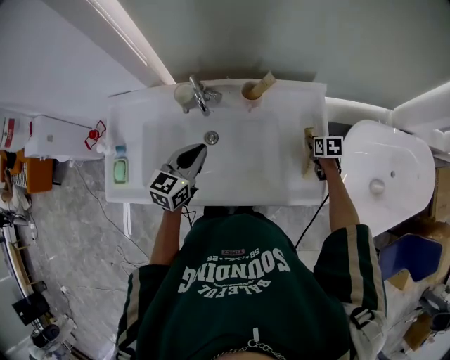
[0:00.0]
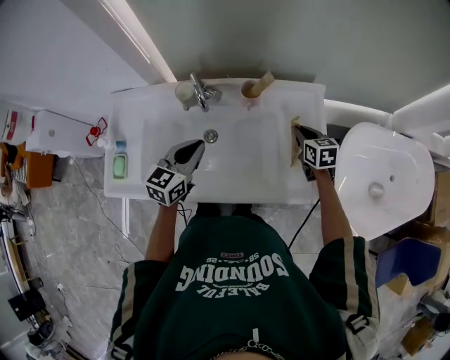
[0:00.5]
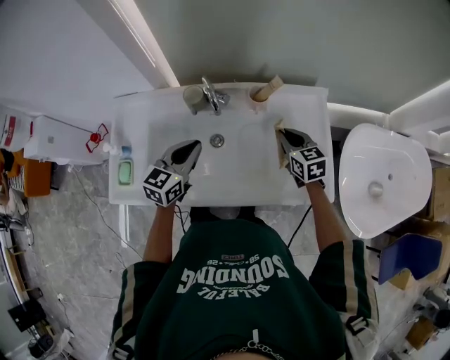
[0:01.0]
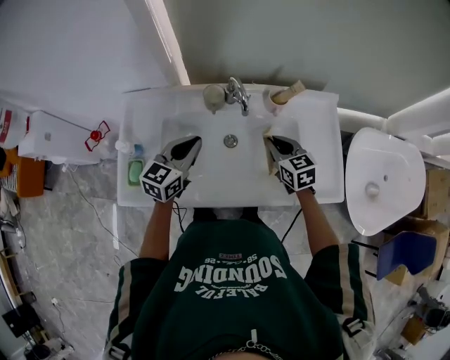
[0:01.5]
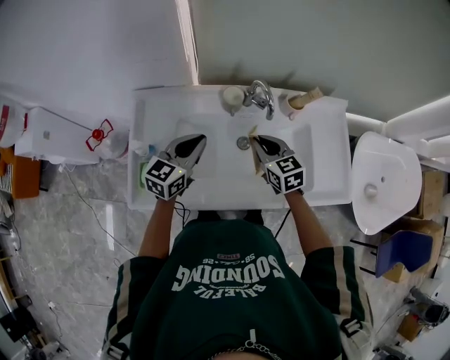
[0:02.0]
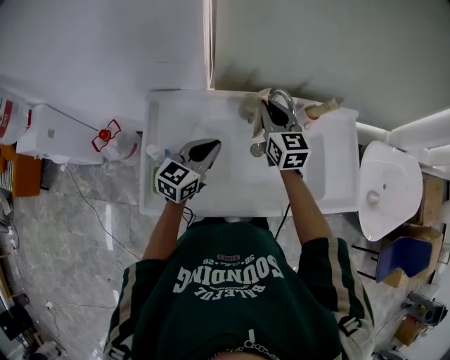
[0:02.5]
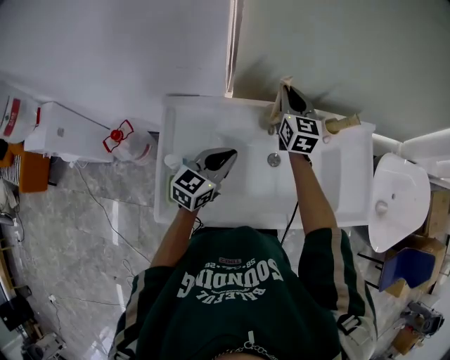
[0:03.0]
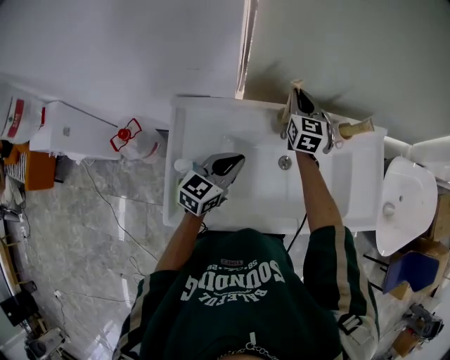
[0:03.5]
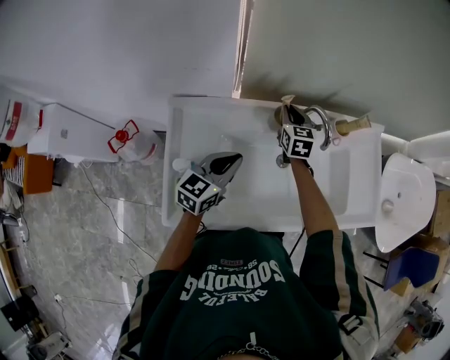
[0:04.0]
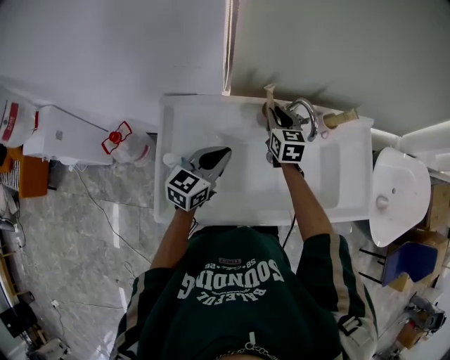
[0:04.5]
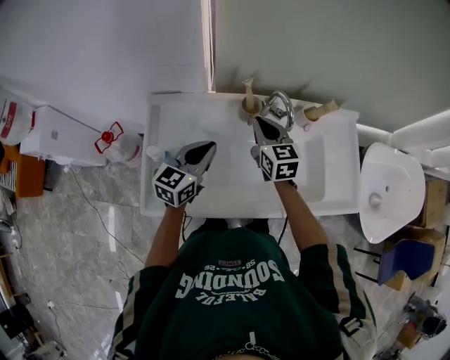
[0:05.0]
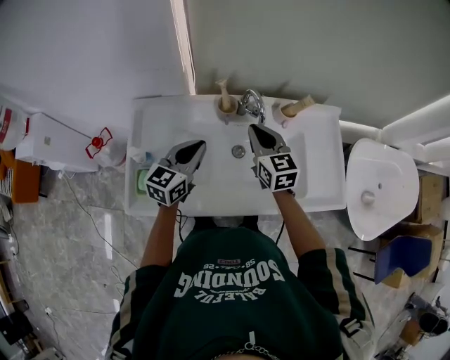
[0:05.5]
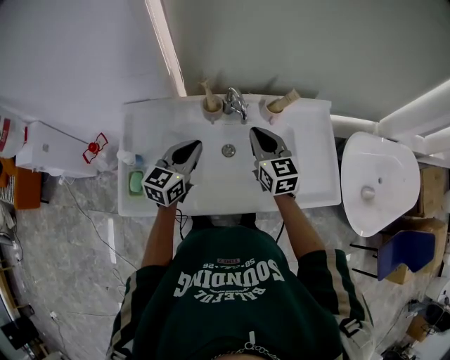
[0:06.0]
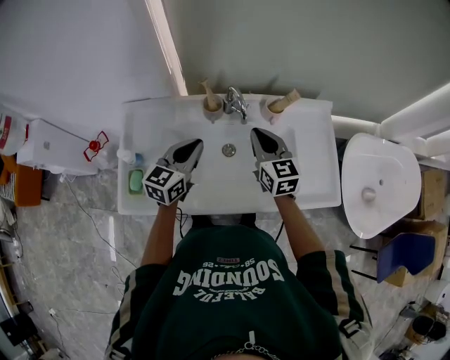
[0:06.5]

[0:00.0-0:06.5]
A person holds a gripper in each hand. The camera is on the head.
0:00.0 to 0:02.0: The right gripper shifts about 40 cm to the left, and tips its fingers upward by some 30 degrees. Meanwhile the left gripper travels to the left by about 20 cm.
0:02.0 to 0:04.5: The left gripper heads to the left, covering some 5 cm. The right gripper moves forward and to the left, some 20 cm.
0:04.5 to 0:06.5: The left gripper is displaced to the right by about 15 cm; the right gripper heads to the right, backward and upward, covering approximately 20 cm.

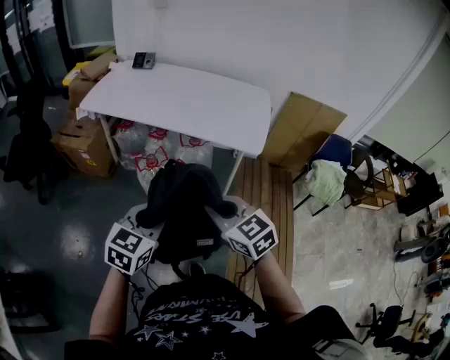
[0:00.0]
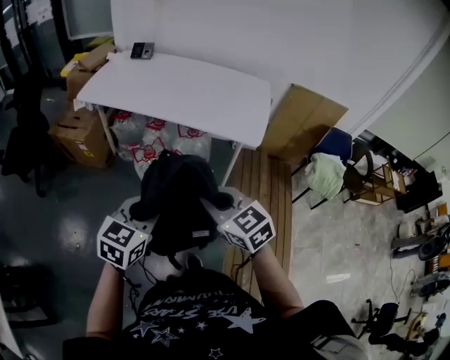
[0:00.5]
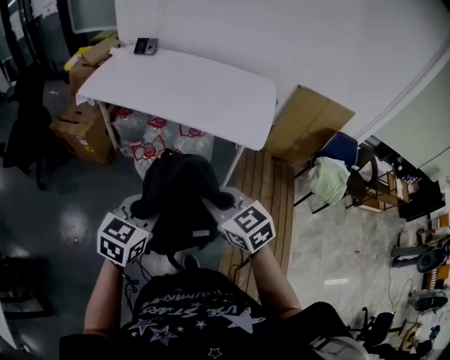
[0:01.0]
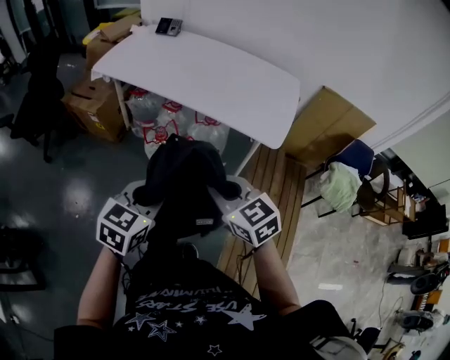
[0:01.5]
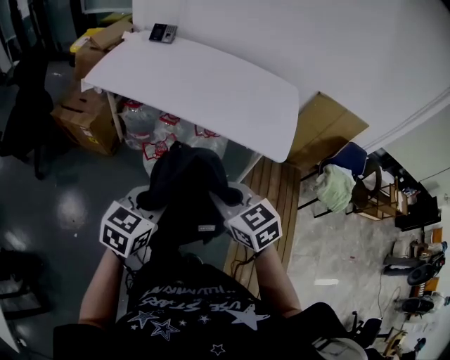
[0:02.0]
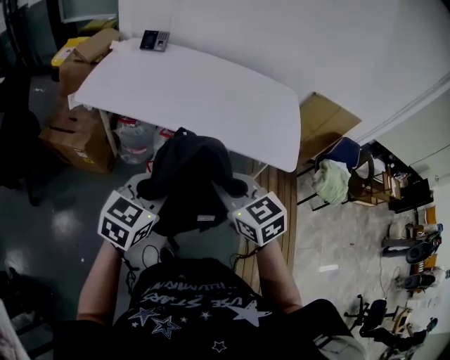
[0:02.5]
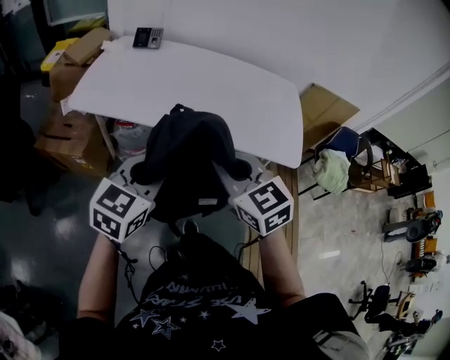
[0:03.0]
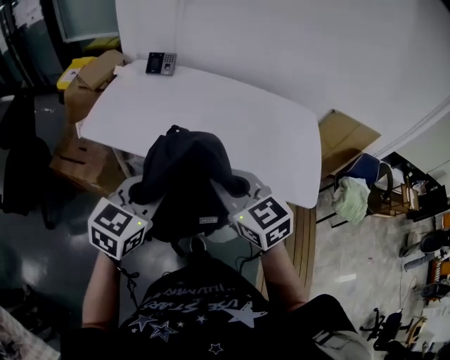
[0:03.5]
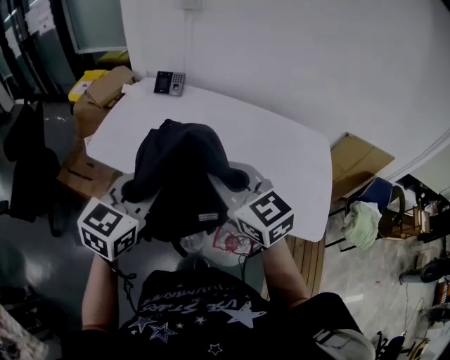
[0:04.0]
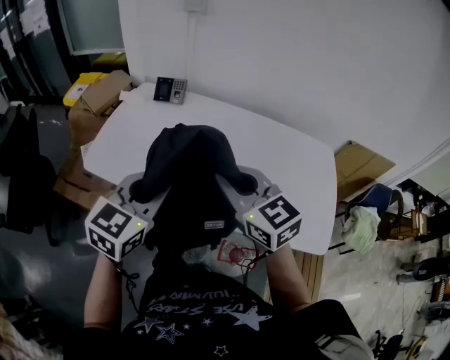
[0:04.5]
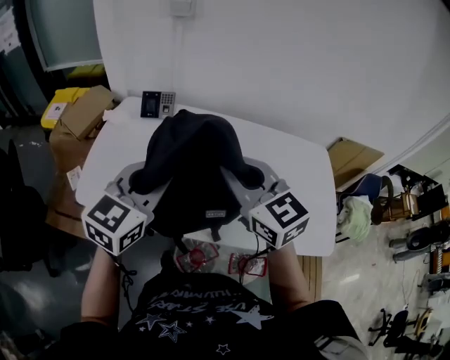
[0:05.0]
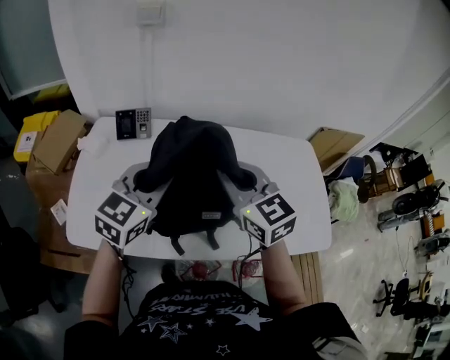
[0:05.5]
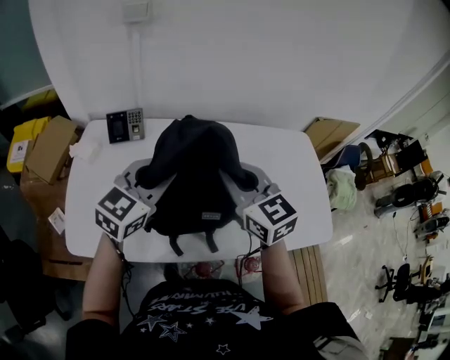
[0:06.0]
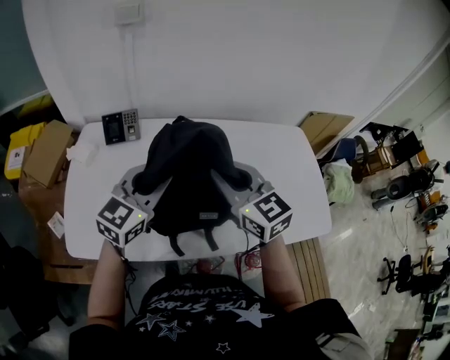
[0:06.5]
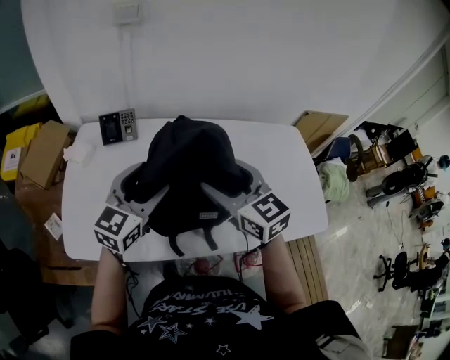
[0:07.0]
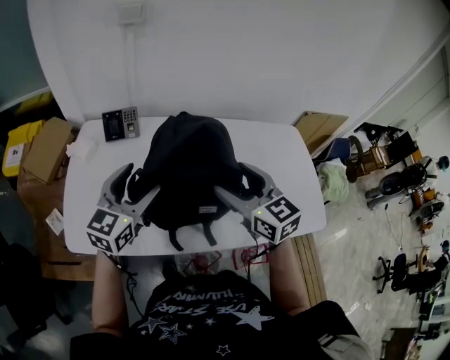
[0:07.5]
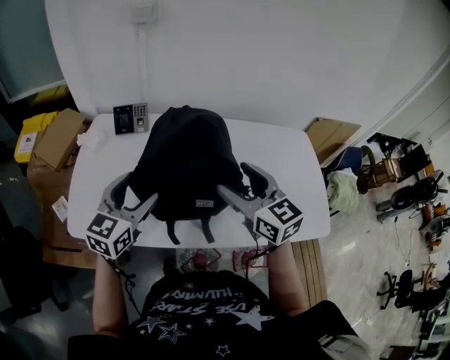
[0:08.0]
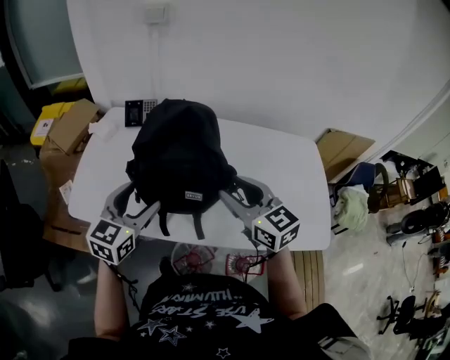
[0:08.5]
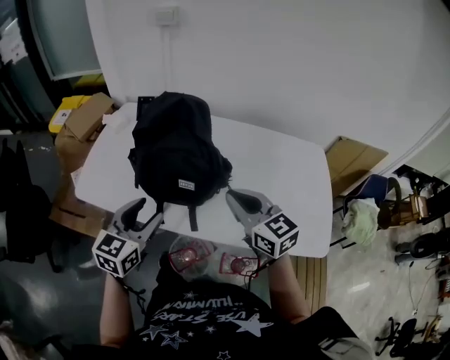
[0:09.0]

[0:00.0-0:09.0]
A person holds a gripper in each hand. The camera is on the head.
0:00.0 to 0:02.0: The grippers both shift forward by about 15 cm.
0:02.0 to 0:04.5: The pair of grippers is taken forward, approximately 50 cm.
0:04.5 to 0:07.0: The right gripper changes place by some 20 cm, rotates about 30 degrees, and opens up, while the left gripper moves about 25 cm, changes its angle by about 20 degrees, and opens up.
0:07.0 to 0:09.0: The right gripper goes some 15 cm backward and to the right, and closes its fingers. Meanwhile the left gripper shifts roughly 20 cm backward, and rotates about 30 degrees.

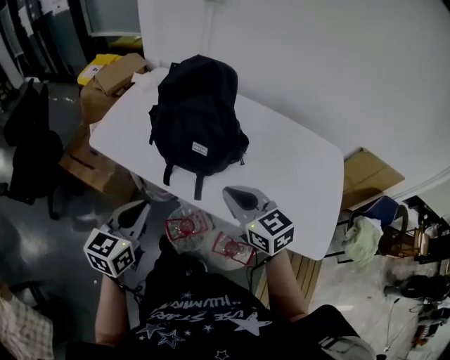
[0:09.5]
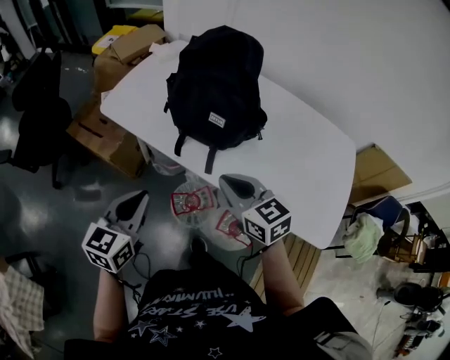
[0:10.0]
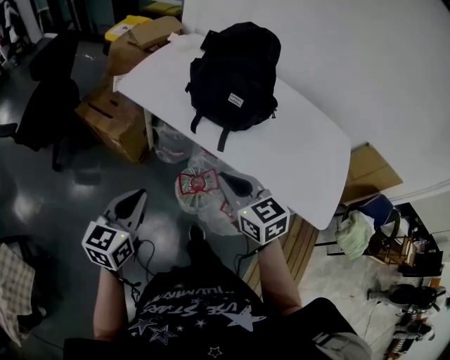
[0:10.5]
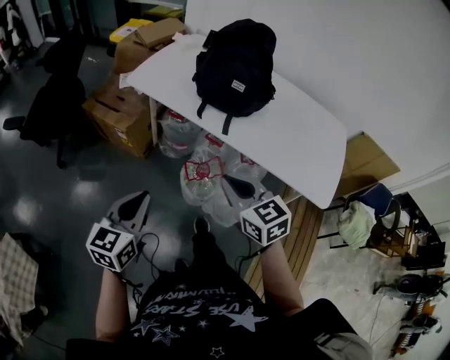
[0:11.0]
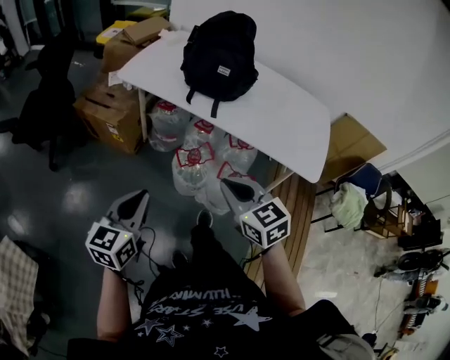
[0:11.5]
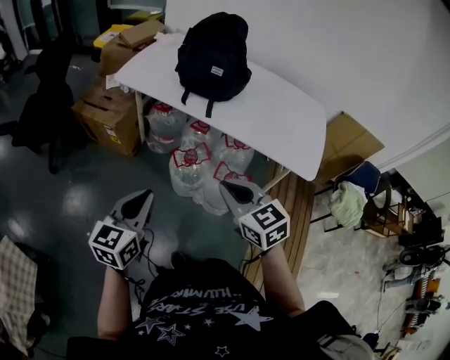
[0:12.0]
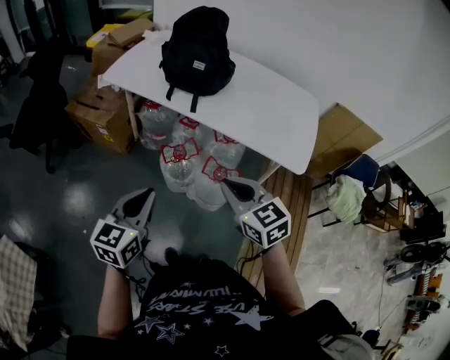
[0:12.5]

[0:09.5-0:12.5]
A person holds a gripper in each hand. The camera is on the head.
0:09.5 to 0:11.0: The grippers both shift backward and to the left by some 25 cm.
0:11.0 to 0:12.5: The left gripper goes about 15 cm to the right and backward. The right gripper moves backward and to the right, roughly 15 cm.

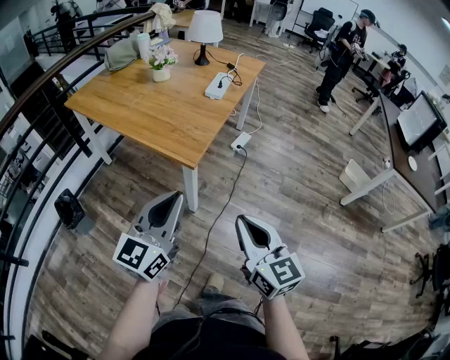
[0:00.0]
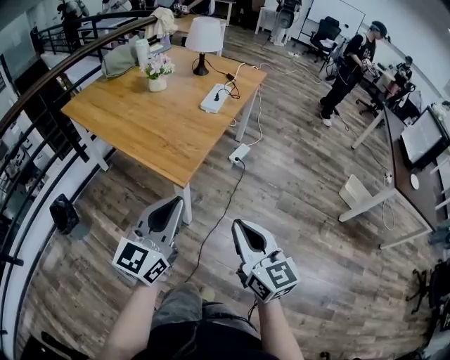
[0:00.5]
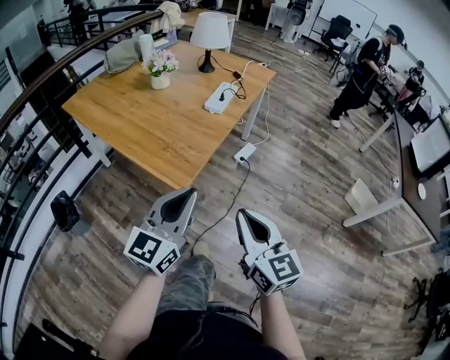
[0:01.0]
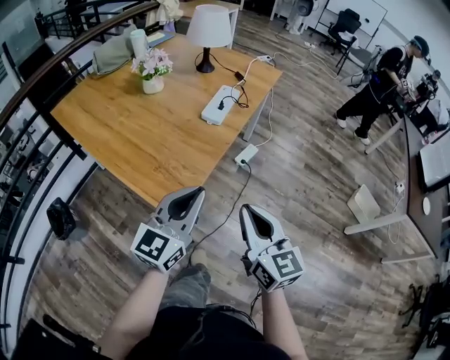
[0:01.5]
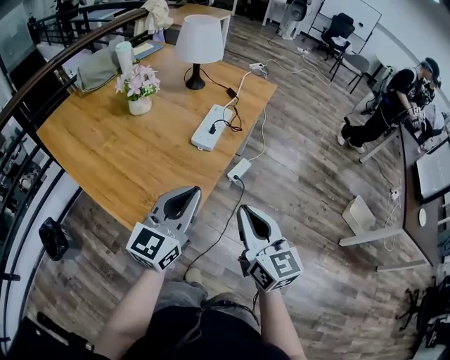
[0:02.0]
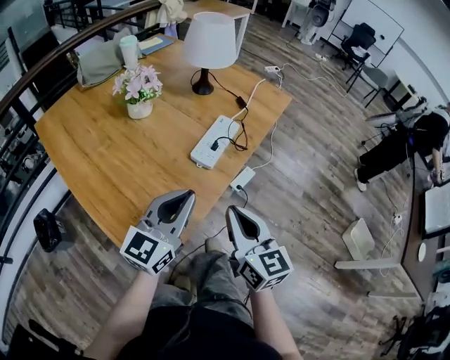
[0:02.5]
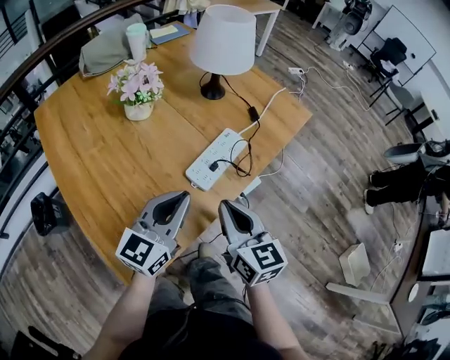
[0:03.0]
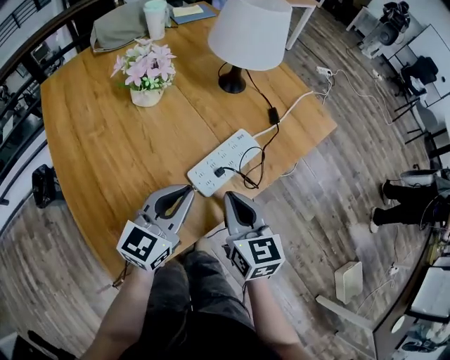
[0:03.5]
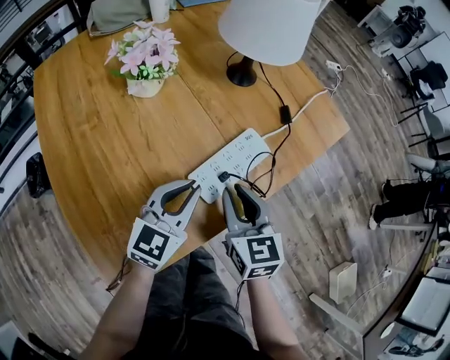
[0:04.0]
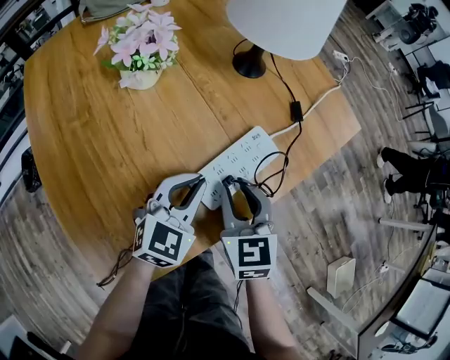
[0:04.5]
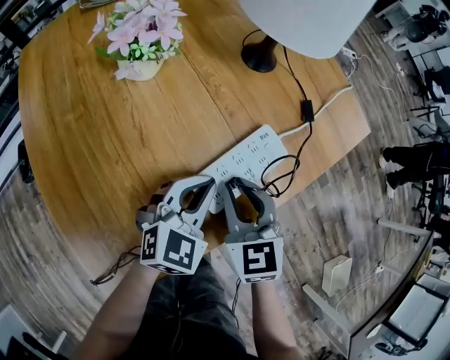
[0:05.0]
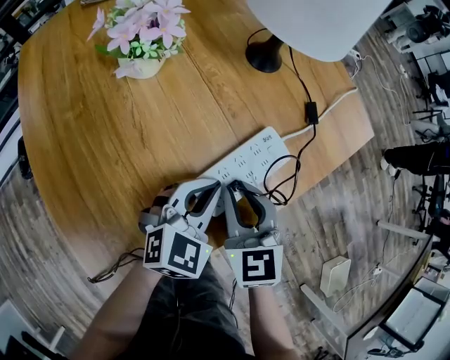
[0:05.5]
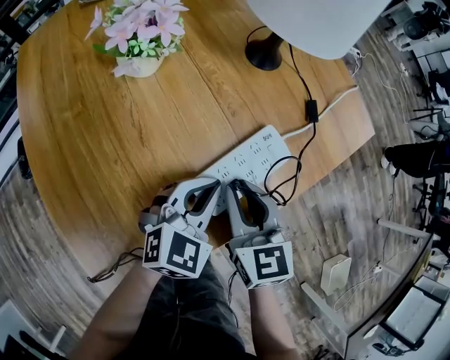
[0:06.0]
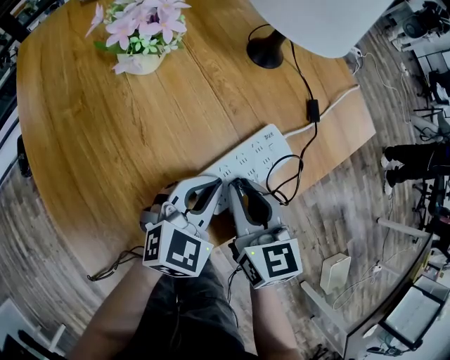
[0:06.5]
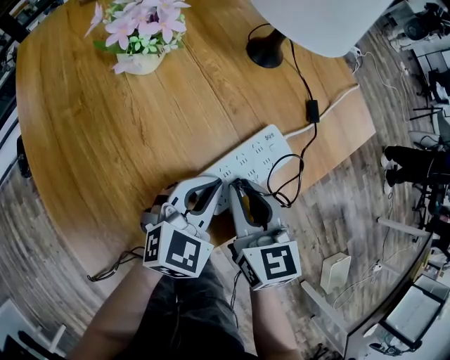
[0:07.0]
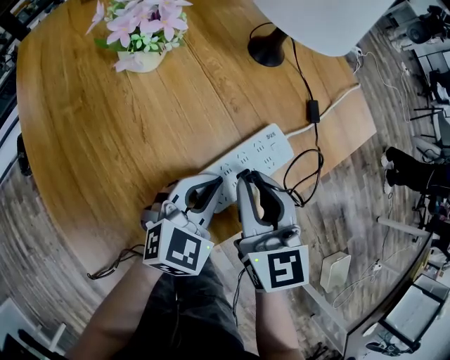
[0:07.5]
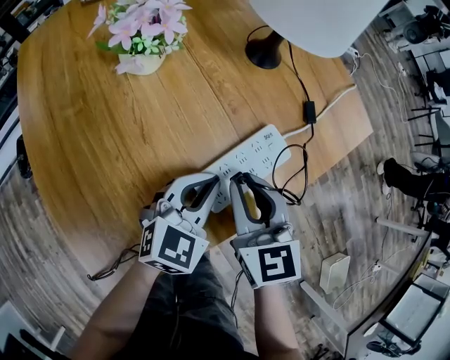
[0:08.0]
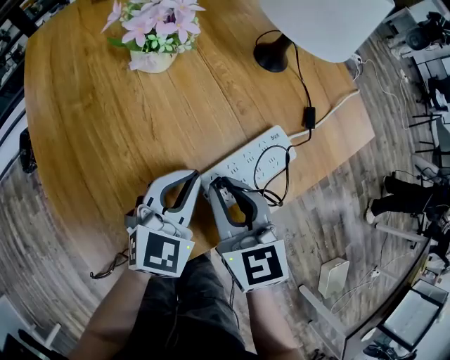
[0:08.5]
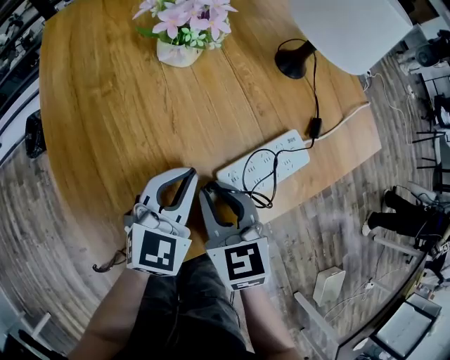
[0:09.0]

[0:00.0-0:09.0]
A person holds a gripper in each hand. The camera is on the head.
0:00.0 to 0:02.0: Both grippers move forward, roughly 35 cm.
0:02.0 to 0:04.5: The two grippers go some 35 cm forward and downward. The right gripper changes its angle by roughly 30 degrees, and opens its fingers, while the left gripper tilts its fingers some 30 degrees downward.
0:04.5 to 0:07.0: The grippers move only a little.
0:07.0 to 0:09.0: Both grippers move to the left, some 10 cm.
